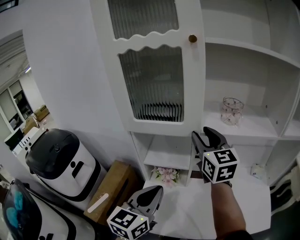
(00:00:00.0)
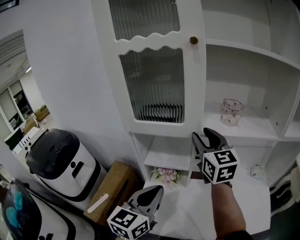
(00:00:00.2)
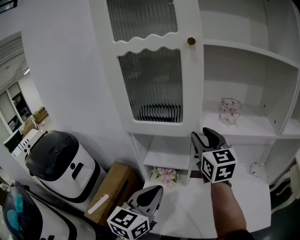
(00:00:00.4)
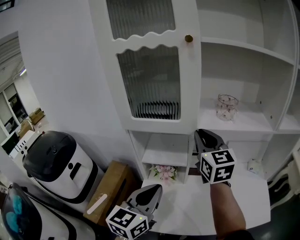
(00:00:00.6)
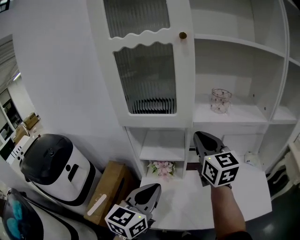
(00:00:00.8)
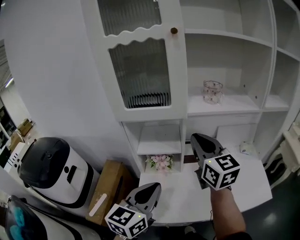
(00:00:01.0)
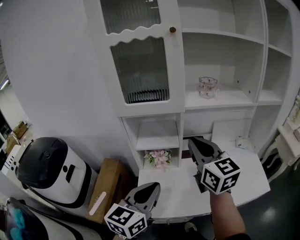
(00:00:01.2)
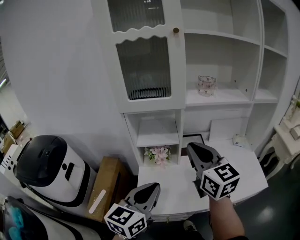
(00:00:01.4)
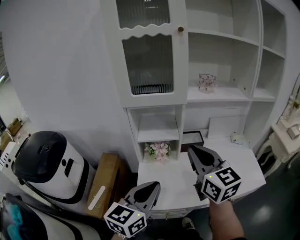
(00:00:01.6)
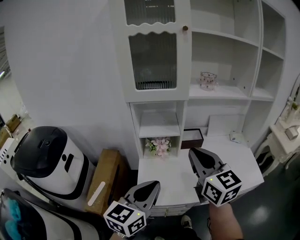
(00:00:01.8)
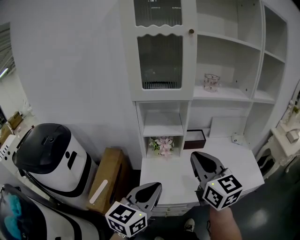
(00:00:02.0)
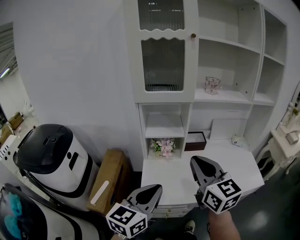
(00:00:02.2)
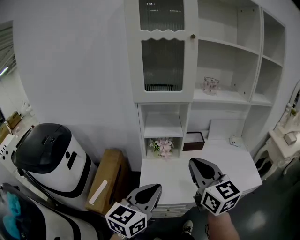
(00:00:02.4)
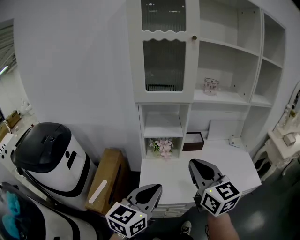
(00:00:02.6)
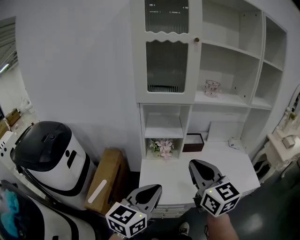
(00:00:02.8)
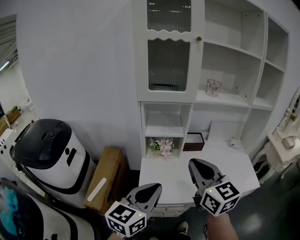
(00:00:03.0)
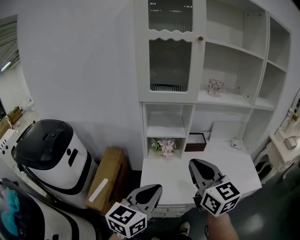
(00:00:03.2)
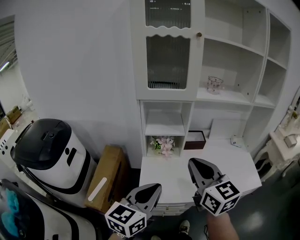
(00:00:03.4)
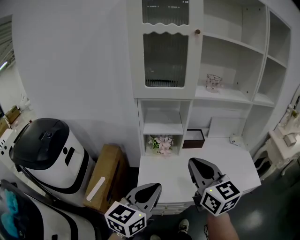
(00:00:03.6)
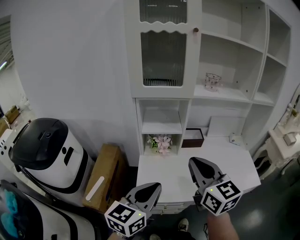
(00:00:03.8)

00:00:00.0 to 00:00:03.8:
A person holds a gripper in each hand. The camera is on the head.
00:00:00.0 to 00:00:01.2: The right gripper moves backward, roughly 15 cm, and closes up. Meanwhile the left gripper goes some 10 cm backward.
00:00:01.2 to 00:00:02.6: Both grippers travel together backward, approximately 15 cm.
00:00:02.6 to 00:00:03.8: There are only small adjustments of the grippers.

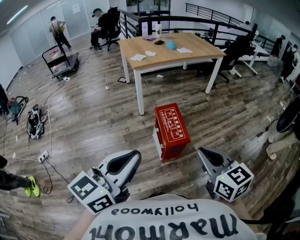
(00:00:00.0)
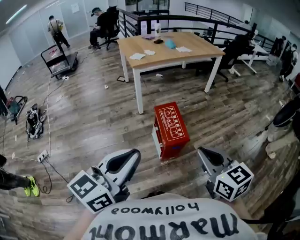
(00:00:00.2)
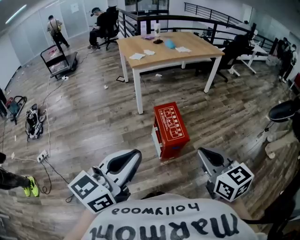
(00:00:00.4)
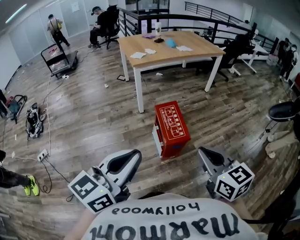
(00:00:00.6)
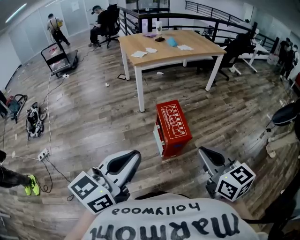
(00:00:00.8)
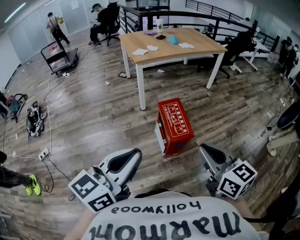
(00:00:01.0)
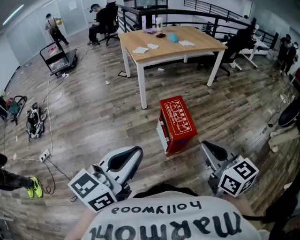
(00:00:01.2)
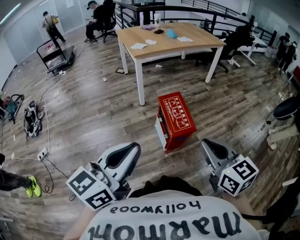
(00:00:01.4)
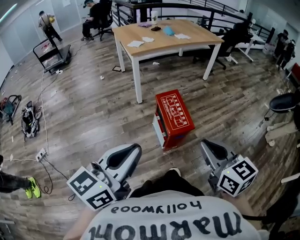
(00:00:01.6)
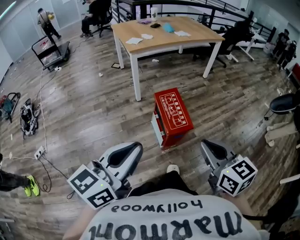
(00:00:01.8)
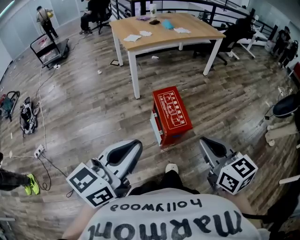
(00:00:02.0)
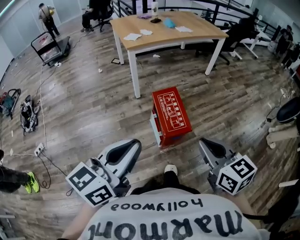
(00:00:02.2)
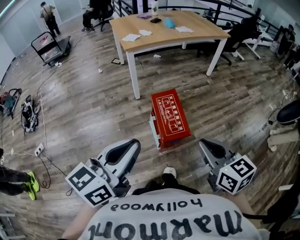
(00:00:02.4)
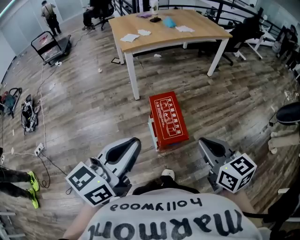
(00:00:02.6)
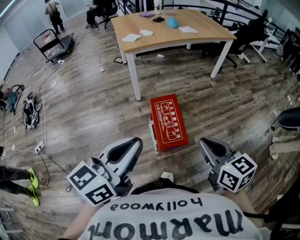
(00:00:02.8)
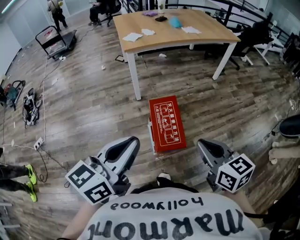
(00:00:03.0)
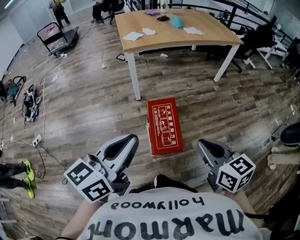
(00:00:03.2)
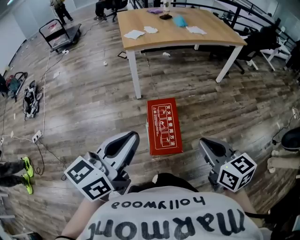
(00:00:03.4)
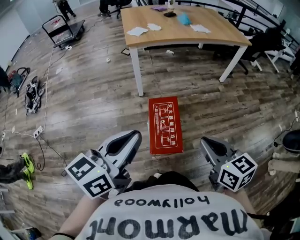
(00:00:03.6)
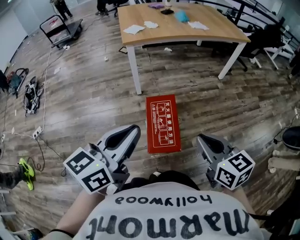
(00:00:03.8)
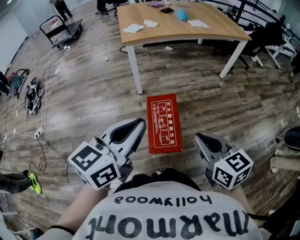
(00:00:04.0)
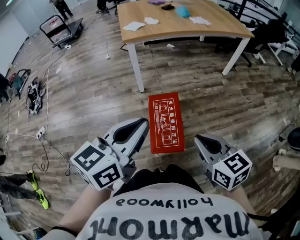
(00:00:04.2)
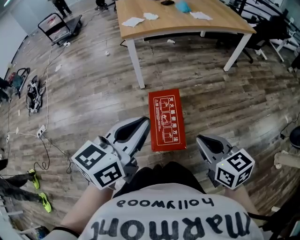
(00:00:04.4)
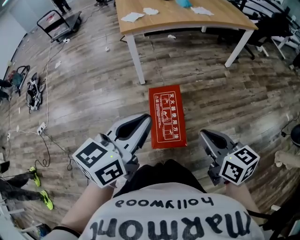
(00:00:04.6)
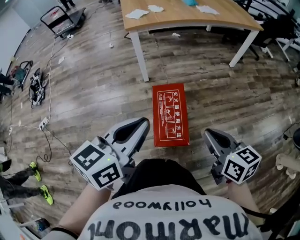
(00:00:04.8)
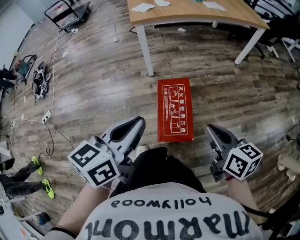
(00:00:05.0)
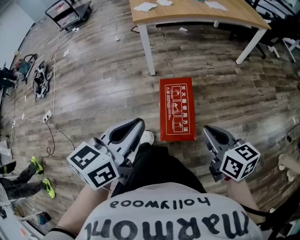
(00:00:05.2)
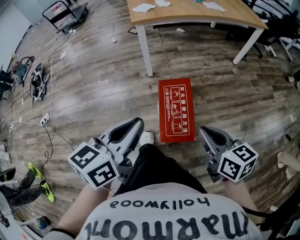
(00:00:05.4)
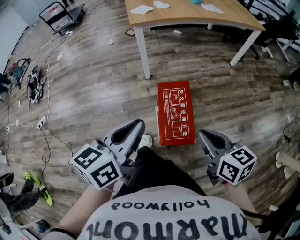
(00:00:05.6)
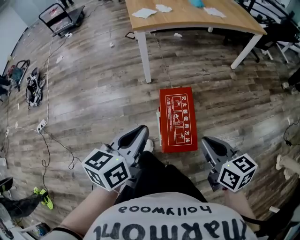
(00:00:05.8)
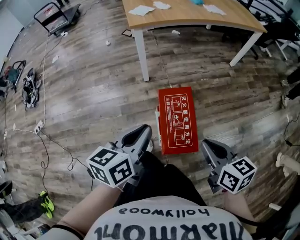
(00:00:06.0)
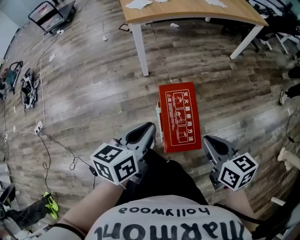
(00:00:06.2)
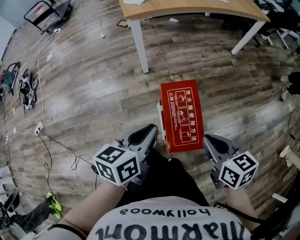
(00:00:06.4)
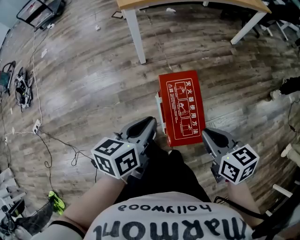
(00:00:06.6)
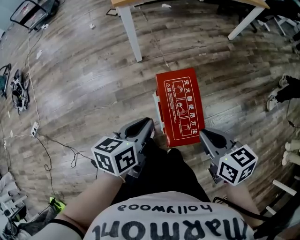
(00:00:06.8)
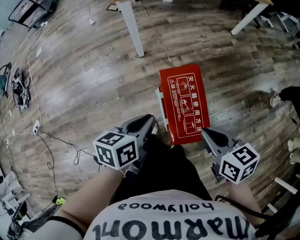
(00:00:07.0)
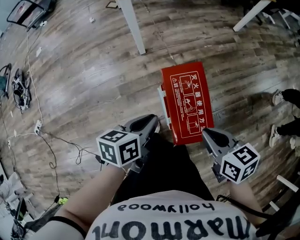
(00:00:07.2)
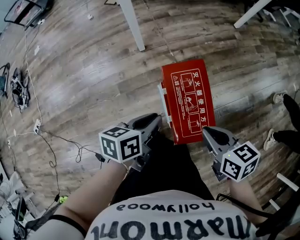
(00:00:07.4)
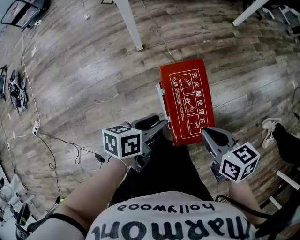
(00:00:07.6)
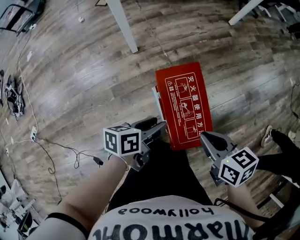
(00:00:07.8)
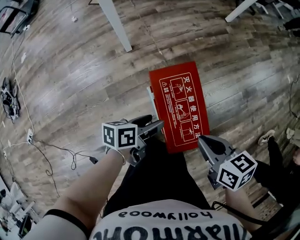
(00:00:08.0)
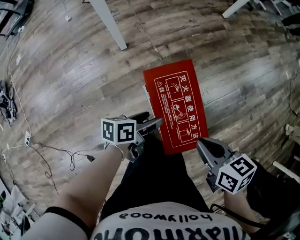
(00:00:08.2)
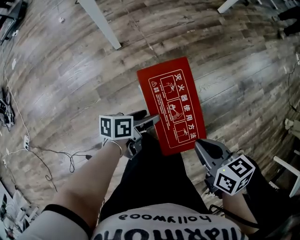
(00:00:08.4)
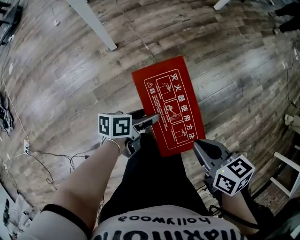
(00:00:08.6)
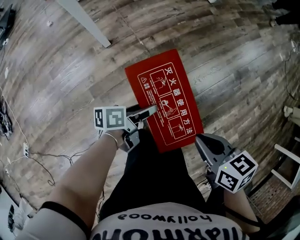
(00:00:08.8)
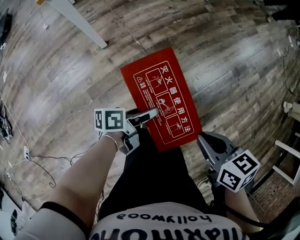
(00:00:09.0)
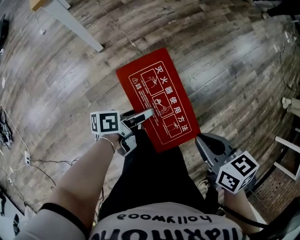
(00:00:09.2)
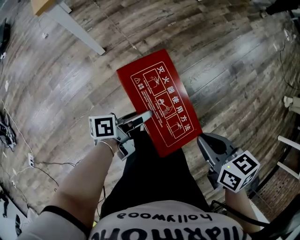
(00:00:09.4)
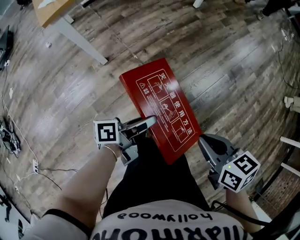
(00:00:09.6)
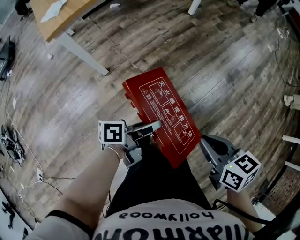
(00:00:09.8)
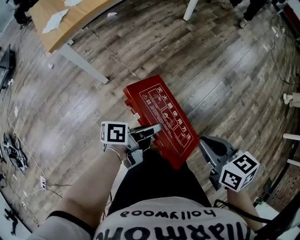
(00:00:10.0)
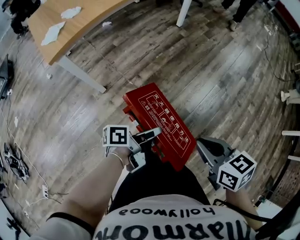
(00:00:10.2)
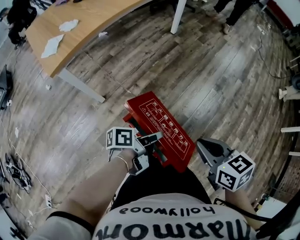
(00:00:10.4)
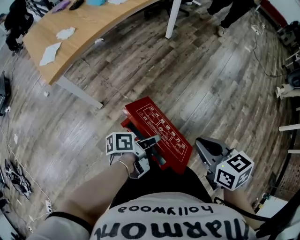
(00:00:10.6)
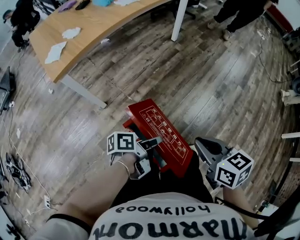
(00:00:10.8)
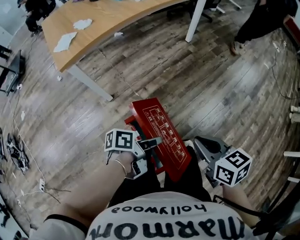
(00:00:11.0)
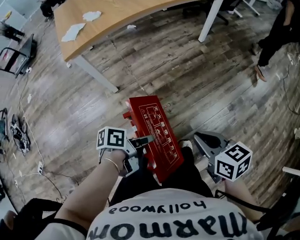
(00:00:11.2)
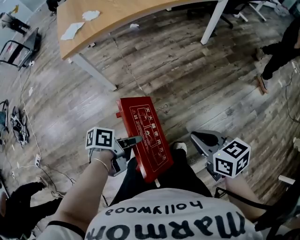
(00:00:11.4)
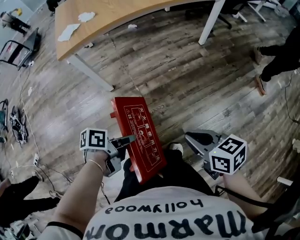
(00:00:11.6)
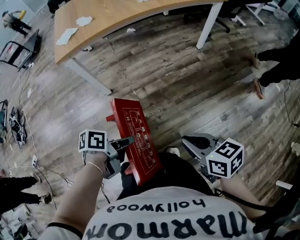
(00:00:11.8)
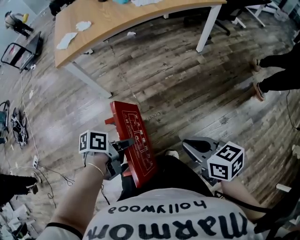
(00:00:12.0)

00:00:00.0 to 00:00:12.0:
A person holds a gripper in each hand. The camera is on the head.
00:00:00.0 to 00:00:01.6: The left gripper ends up approximately 5 cm from where it was.
00:00:01.6 to 00:00:03.0: Both grippers move forward and to the right, roughly 20 cm.
00:00:03.0 to 00:00:04.4: The left gripper moves forward and to the right, roughly 10 cm; the right gripper goes some 10 cm forward and downward.
00:00:04.4 to 00:00:06.0: The right gripper shifts by approximately 5 cm. Meanwhile the left gripper is displaced downward and to the left by about 15 cm.
00:00:06.0 to 00:00:07.6: The left gripper goes some 20 cm downward, turns by about 30 degrees, and opens up; the right gripper travels downward by about 10 cm.
00:00:07.6 to 00:00:09.0: The right gripper is displaced to the right by about 5 cm. Meanwhile the left gripper moves downward, to the right and forward, roughly 15 cm, rotates approximately 20 degrees, and opens its fingers.
00:00:09.0 to 00:00:10.4: Both grippers travel together upward, about 10 cm. The left gripper closes its fingers.
00:00:10.4 to 00:00:12.0: The right gripper ends up some 15 cm from where it was, and swivels approximately 30 degrees. The left gripper shifts by some 5 cm, and turns by some 30 degrees.

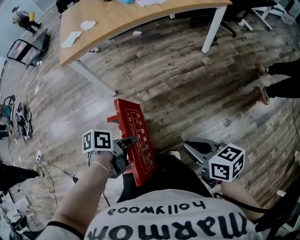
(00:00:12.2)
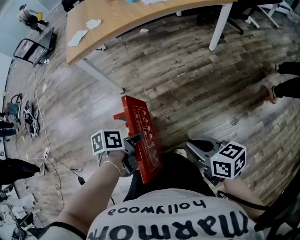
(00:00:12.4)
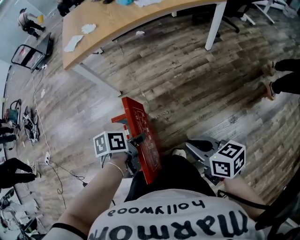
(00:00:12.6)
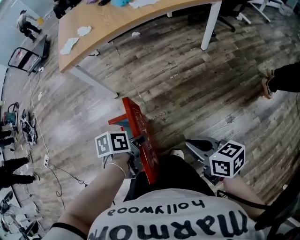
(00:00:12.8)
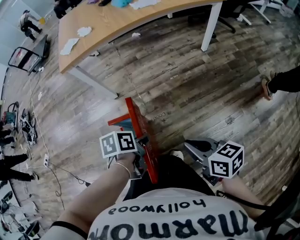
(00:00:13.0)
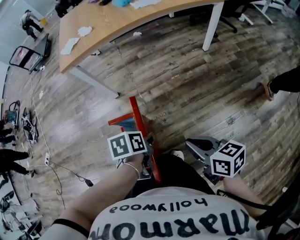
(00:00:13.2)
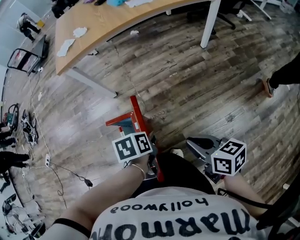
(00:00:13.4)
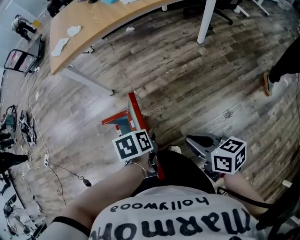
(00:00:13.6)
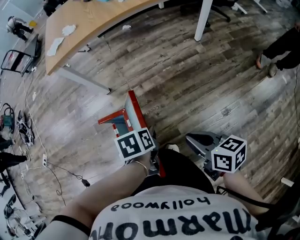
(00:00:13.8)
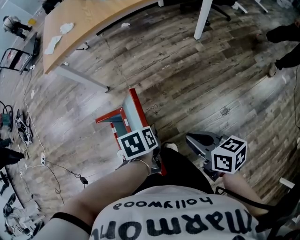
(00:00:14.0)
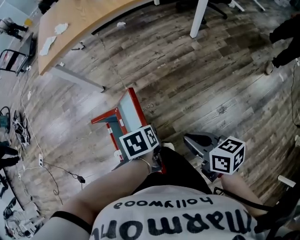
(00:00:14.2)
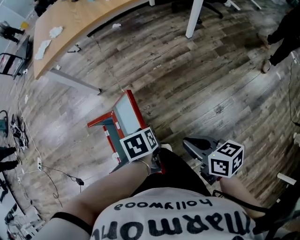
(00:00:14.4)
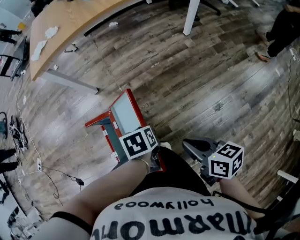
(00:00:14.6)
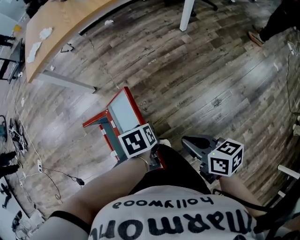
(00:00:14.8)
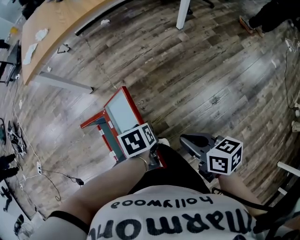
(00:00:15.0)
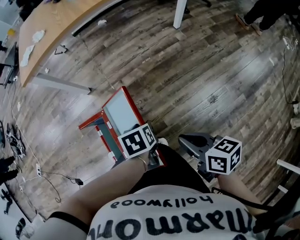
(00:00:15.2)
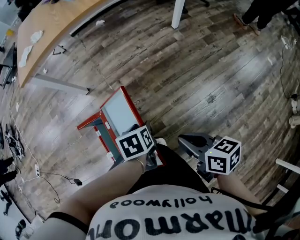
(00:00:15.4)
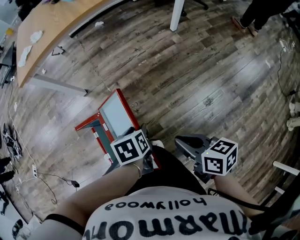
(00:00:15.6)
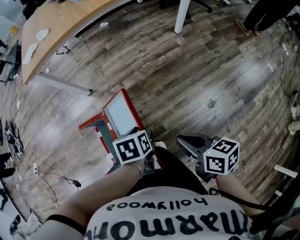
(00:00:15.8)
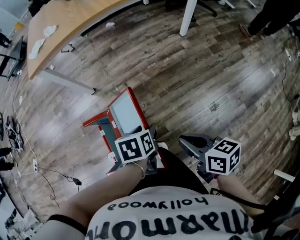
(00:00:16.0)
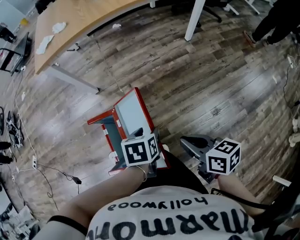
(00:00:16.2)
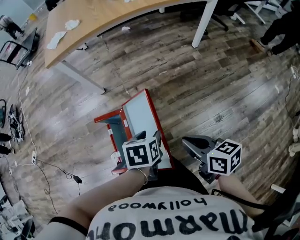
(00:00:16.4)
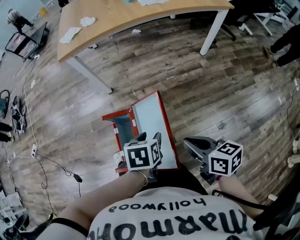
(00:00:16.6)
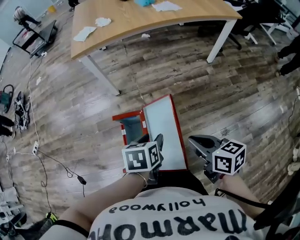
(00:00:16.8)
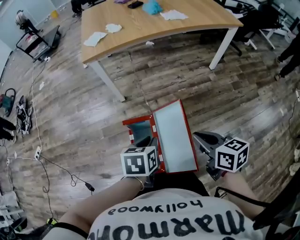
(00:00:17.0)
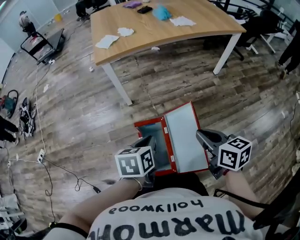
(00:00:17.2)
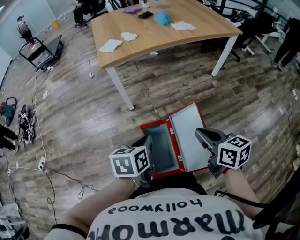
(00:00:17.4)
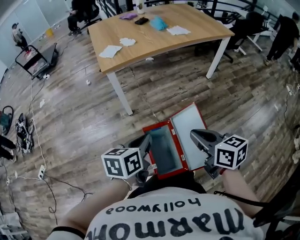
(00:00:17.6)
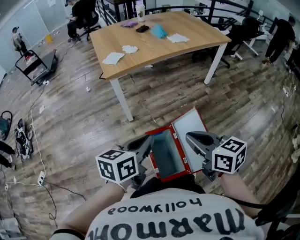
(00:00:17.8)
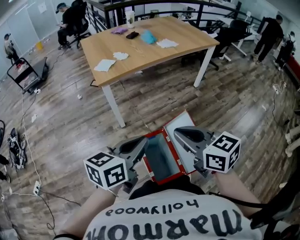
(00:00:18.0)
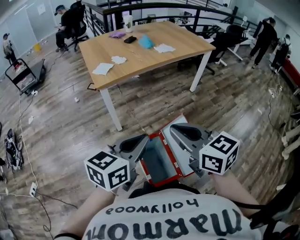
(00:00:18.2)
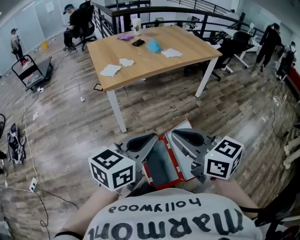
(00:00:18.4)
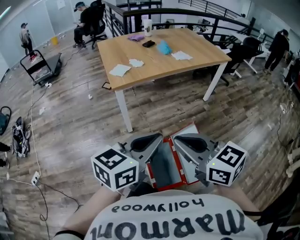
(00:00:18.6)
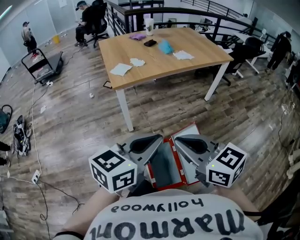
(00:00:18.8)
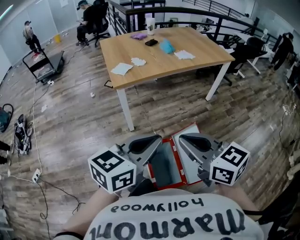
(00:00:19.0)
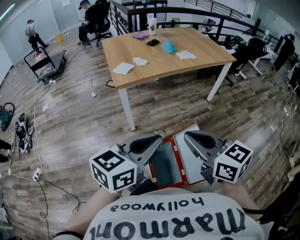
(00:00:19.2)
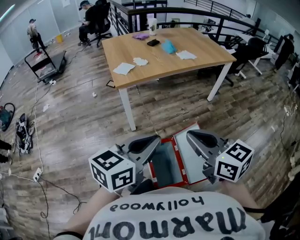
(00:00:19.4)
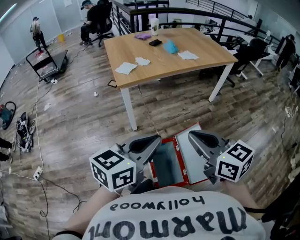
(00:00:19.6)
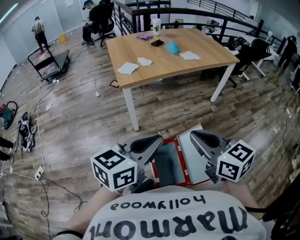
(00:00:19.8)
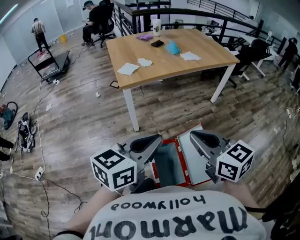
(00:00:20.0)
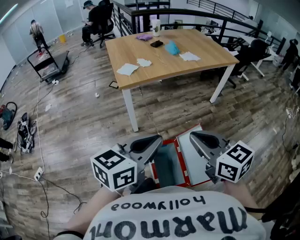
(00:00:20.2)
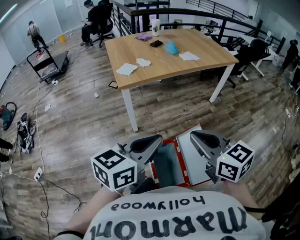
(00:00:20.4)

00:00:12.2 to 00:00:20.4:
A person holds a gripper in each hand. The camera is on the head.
00:00:12.2 to 00:00:13.8: The left gripper moves to the right, some 10 cm, and rotates some 30 degrees. Meanwhile the right gripper goes some 5 cm to the right.
00:00:13.8 to 00:00:15.4: The left gripper moves to the right, some 5 cm.
00:00:15.4 to 00:00:17.2: The right gripper goes roughly 20 cm to the left, upward and forward. Meanwhile the left gripper is displaced to the left and upward by approximately 30 cm, swivels approximately 20 degrees, and closes up.
00:00:17.2 to 00:00:18.8: The right gripper travels to the left and upward by some 25 cm, and swivels roughly 30 degrees. The left gripper heads upward, covering about 25 cm, and tilts its fingers about 30 degrees upward.
00:00:18.8 to 00:00:20.4: The grippers stay close to where they were, moving slightly.
